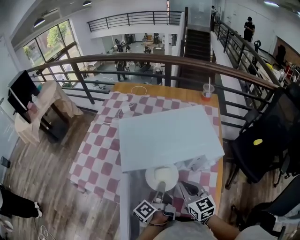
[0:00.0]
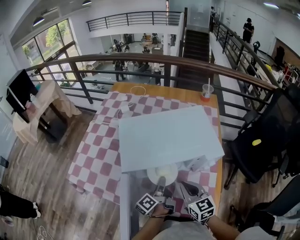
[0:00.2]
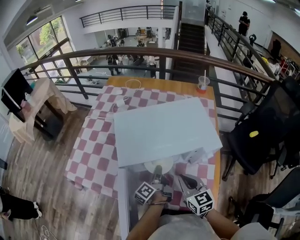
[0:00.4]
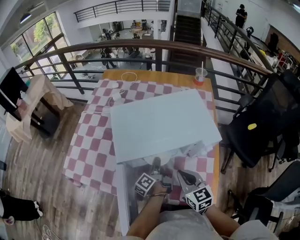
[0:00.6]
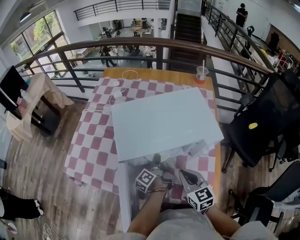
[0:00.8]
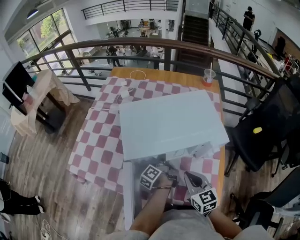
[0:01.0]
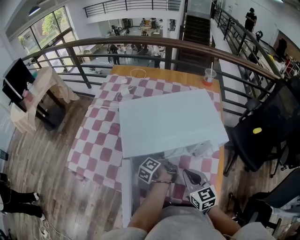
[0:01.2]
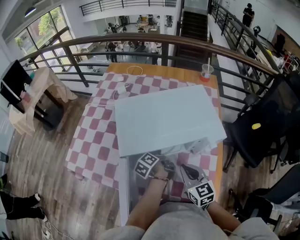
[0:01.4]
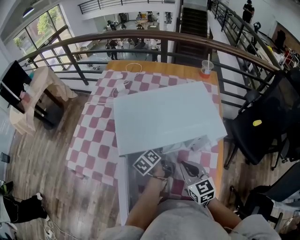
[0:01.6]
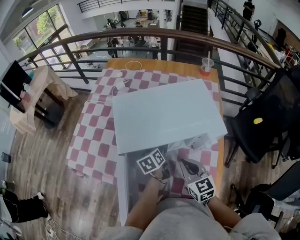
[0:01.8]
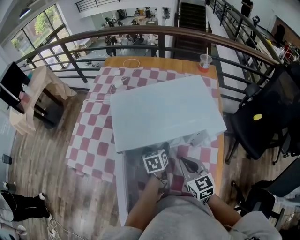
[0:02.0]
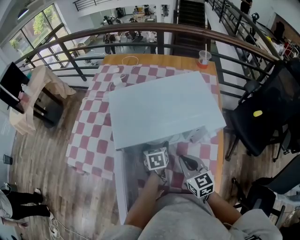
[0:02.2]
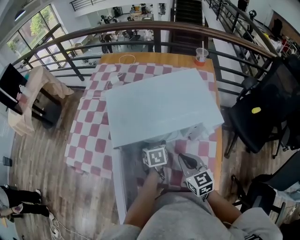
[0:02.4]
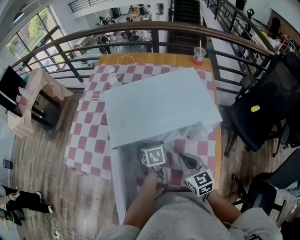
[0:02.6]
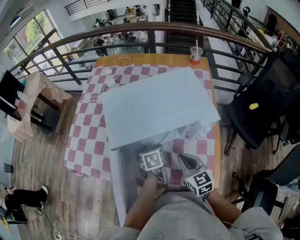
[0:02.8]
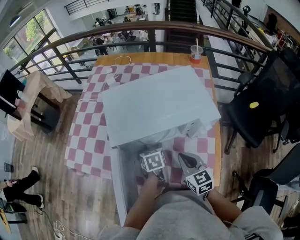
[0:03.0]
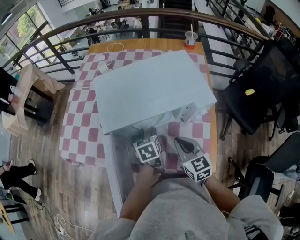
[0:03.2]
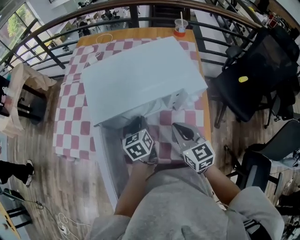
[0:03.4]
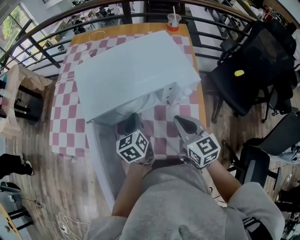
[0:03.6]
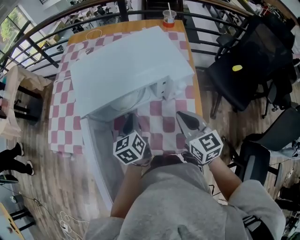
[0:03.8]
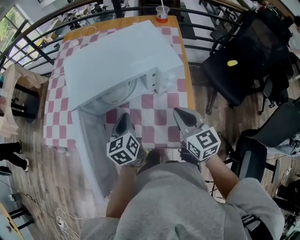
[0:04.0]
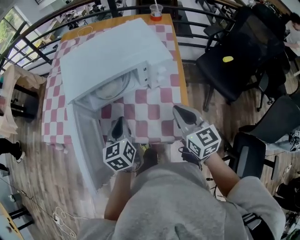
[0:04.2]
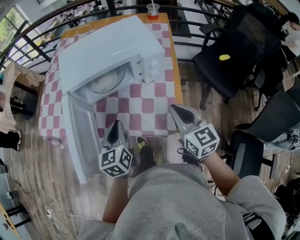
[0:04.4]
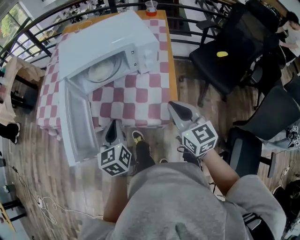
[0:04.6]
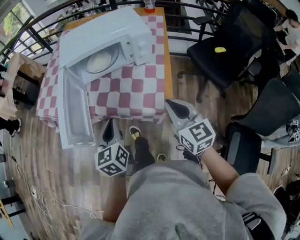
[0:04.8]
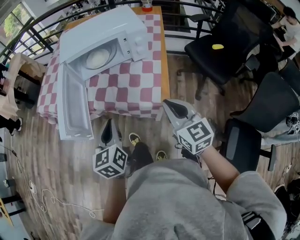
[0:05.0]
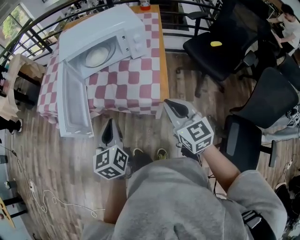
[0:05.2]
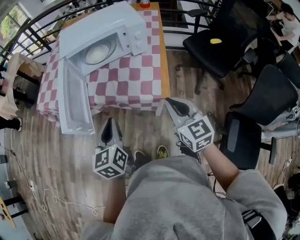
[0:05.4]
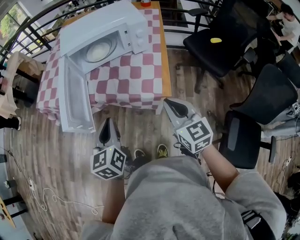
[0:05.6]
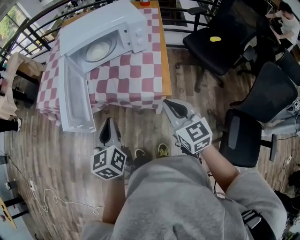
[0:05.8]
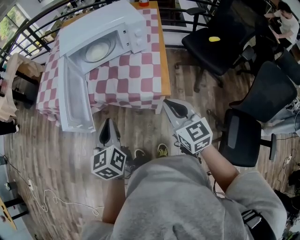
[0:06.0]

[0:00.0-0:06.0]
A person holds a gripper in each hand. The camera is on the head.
0:00.0 to 0:01.6: The left gripper shifts roughly 15 cm forward and downward, changes its angle by approximately 30 degrees, and opens.
0:01.6 to 0:03.0: The left gripper is displaced backward by roughly 5 cm, and rolls clockwise, seen from behind, by approximately 40 degrees.
0:03.0 to 0:04.4: The left gripper travels backward and upward by some 25 cm, turns by approximately 30 degrees, and closes; the right gripper heads backward, to the right and upward, covering some 20 cm.
0:04.4 to 0:06.0: Both grippers move backward, about 20 cm.

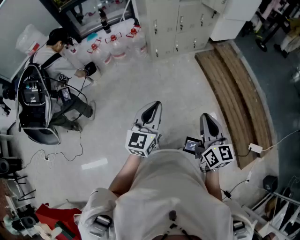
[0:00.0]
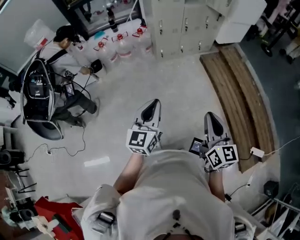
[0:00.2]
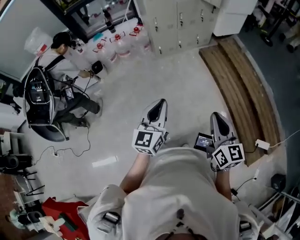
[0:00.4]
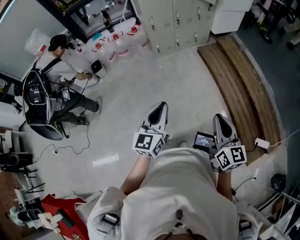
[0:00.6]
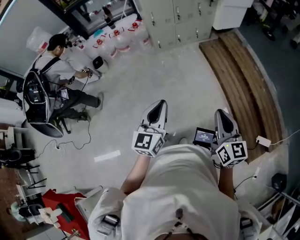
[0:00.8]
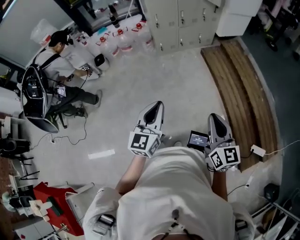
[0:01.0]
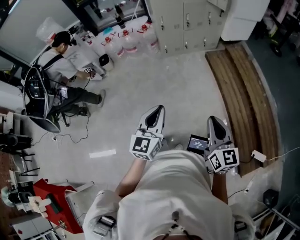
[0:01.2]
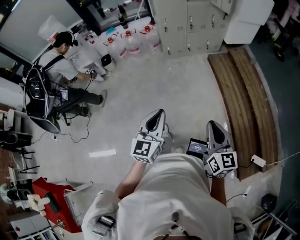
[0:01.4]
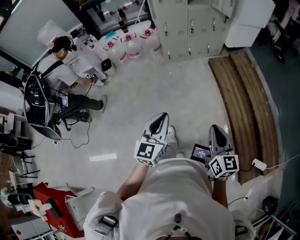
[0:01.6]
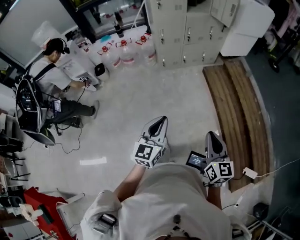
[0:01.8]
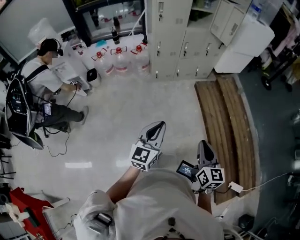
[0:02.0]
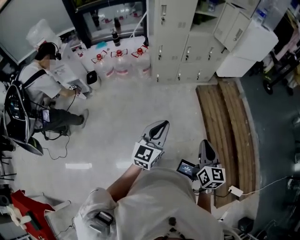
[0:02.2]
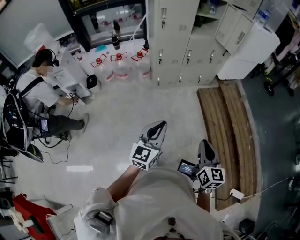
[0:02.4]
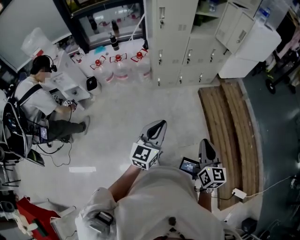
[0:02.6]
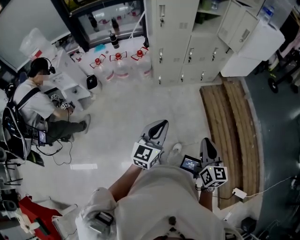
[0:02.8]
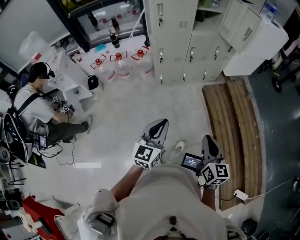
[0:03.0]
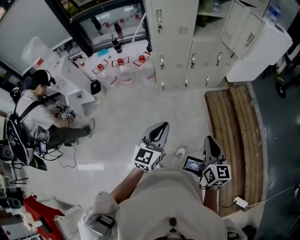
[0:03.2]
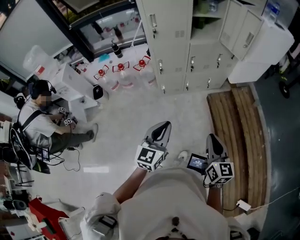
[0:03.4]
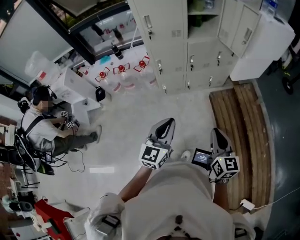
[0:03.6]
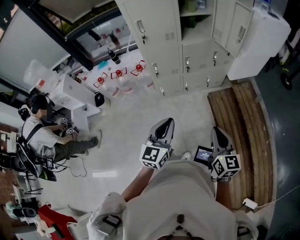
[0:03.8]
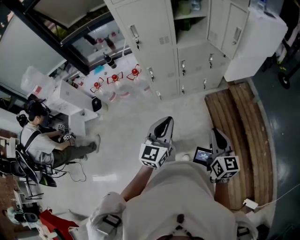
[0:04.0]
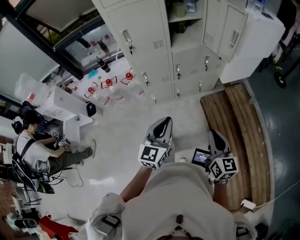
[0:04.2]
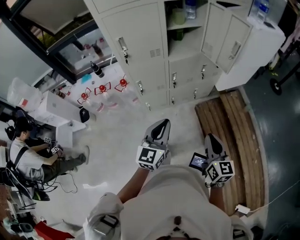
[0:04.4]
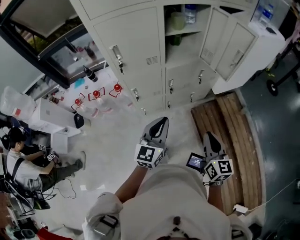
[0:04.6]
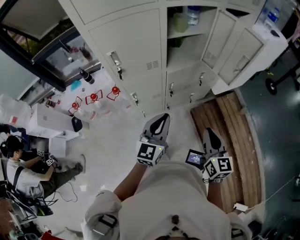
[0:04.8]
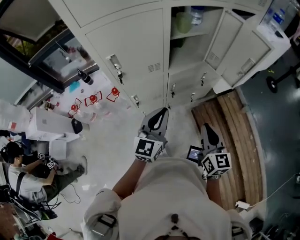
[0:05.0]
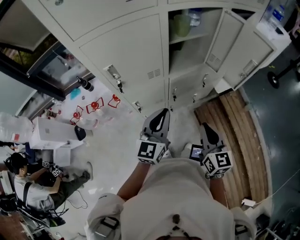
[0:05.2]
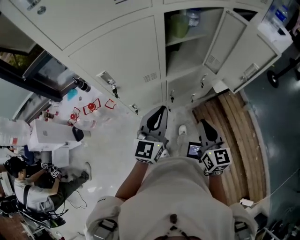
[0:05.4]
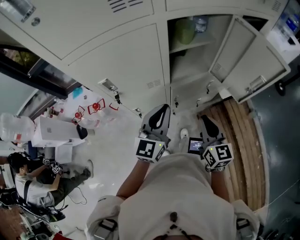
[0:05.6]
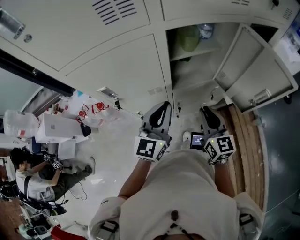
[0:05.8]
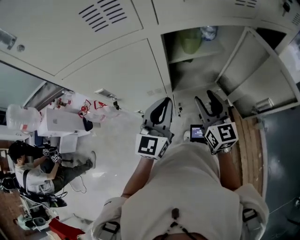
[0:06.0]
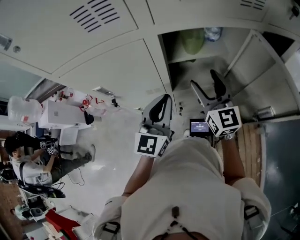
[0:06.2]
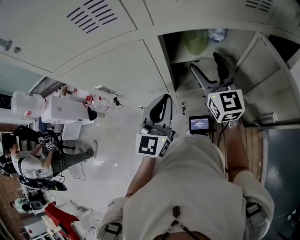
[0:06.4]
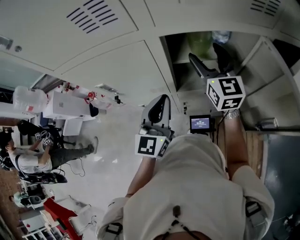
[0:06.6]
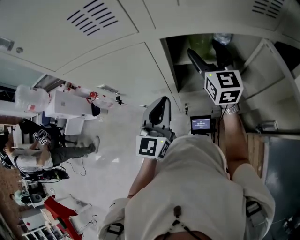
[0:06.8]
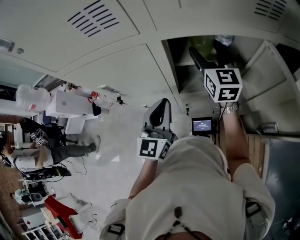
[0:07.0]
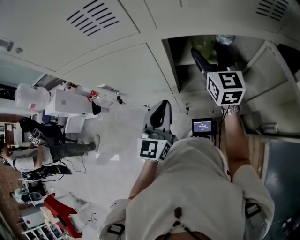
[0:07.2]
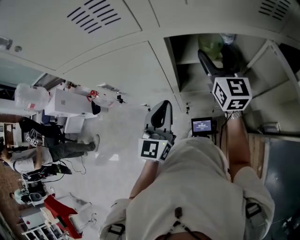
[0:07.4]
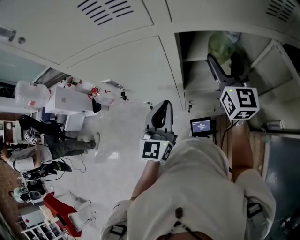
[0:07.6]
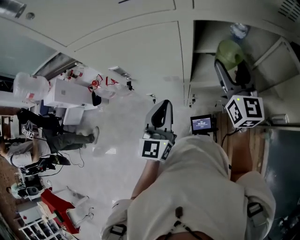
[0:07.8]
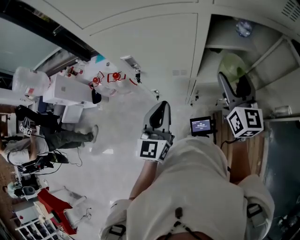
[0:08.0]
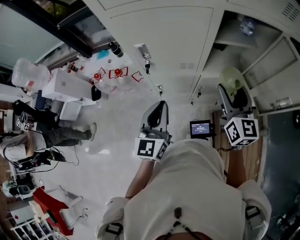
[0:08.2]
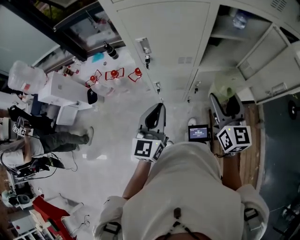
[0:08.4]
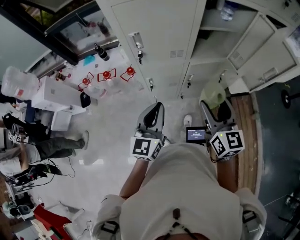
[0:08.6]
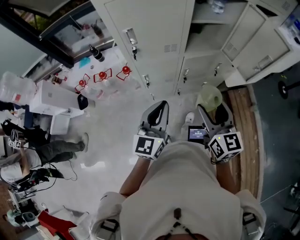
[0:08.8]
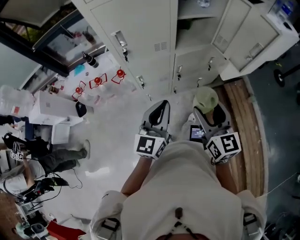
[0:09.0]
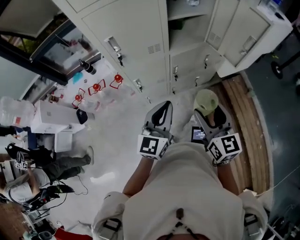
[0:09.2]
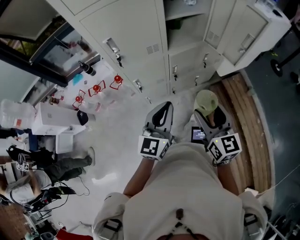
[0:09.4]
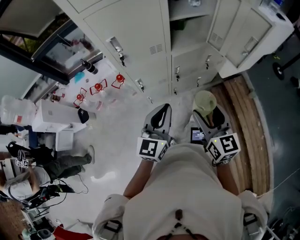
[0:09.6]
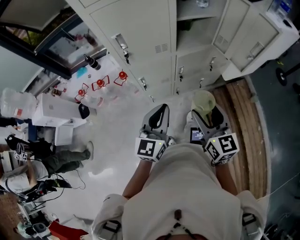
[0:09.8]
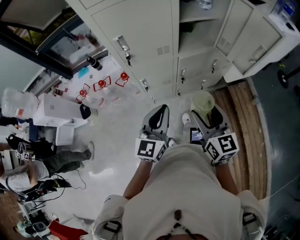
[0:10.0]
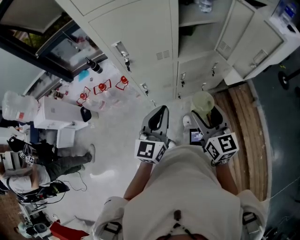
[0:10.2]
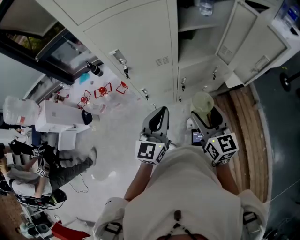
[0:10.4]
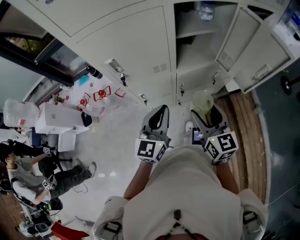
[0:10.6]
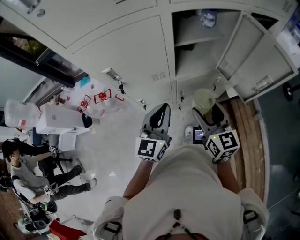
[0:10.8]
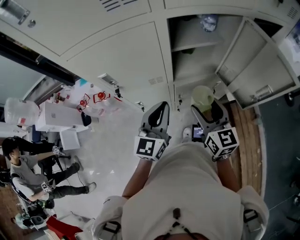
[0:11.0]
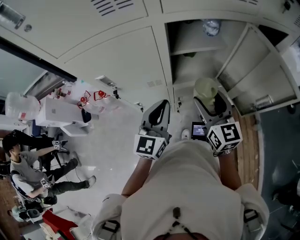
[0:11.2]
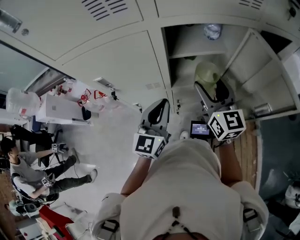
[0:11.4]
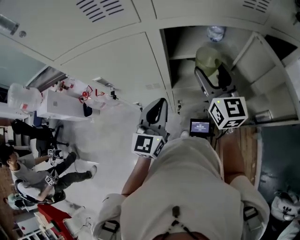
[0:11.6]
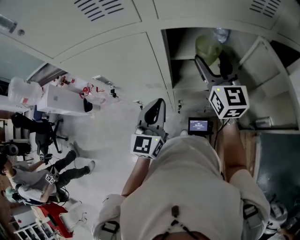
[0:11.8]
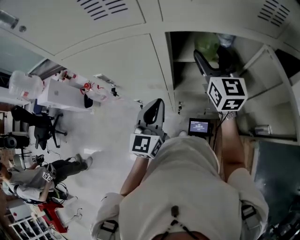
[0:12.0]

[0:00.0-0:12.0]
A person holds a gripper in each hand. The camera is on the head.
0:00.0 to 0:01.6: The left gripper moves to the right and backward, roughly 15 cm, while the right gripper travels to the right by some 15 cm.
0:01.6 to 0:03.0: Both grippers move forward, roughly 30 cm.
0:03.0 to 0:04.4: Both grippers move forward and to the right, about 30 cm.
0:04.4 to 0:06.0: Both grippers travel together forward, about 40 cm. The right gripper opens its fingers.
0:06.0 to 0:07.6: The right gripper moves forward and upward, some 15 cm, and opens.
0:07.6 to 0:09.0: The right gripper heads backward, covering about 40 cm. Meanwhile the left gripper shifts roughly 25 cm backward, and turns by about 20 degrees.
0:09.0 to 0:10.4: Both grippers travel together forward, roughly 5 cm.
0:10.4 to 0:12.0: The right gripper moves forward, about 35 cm, while the left gripper goes some 20 cm forward and to the right.

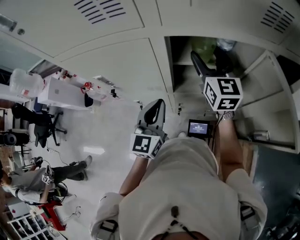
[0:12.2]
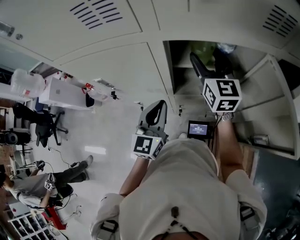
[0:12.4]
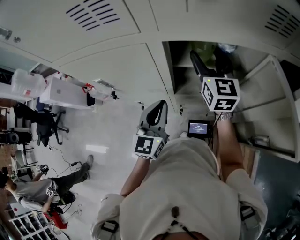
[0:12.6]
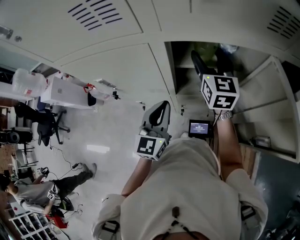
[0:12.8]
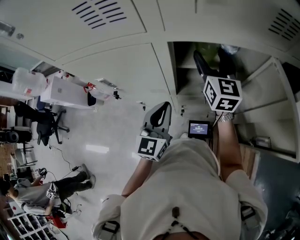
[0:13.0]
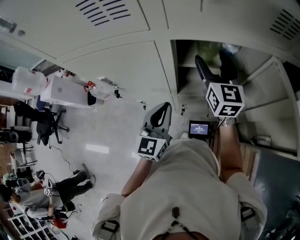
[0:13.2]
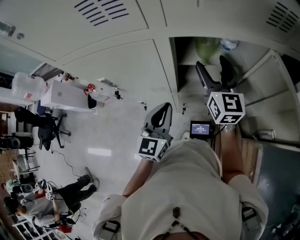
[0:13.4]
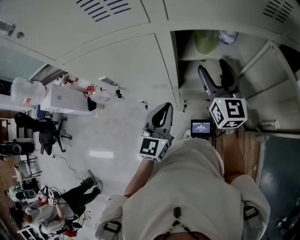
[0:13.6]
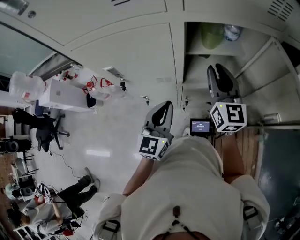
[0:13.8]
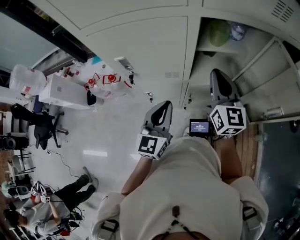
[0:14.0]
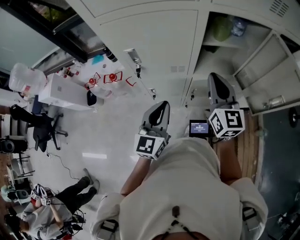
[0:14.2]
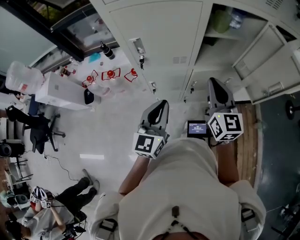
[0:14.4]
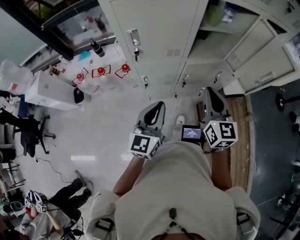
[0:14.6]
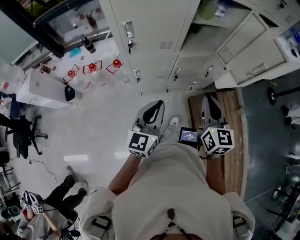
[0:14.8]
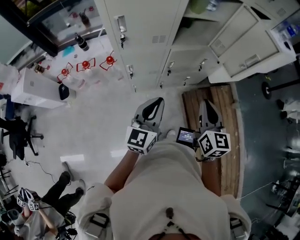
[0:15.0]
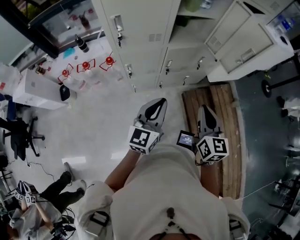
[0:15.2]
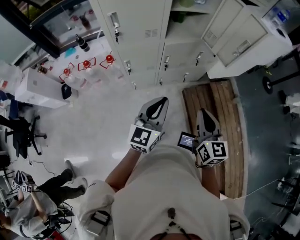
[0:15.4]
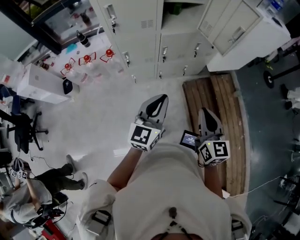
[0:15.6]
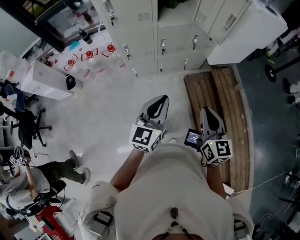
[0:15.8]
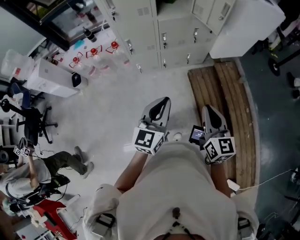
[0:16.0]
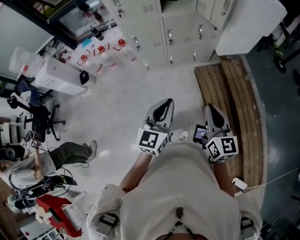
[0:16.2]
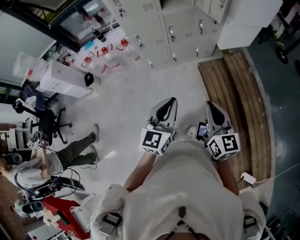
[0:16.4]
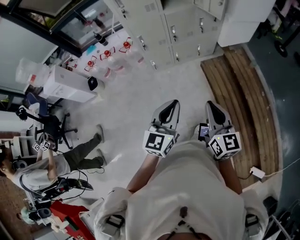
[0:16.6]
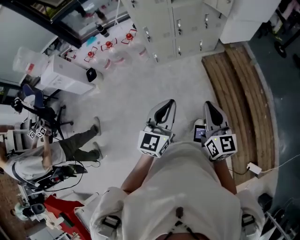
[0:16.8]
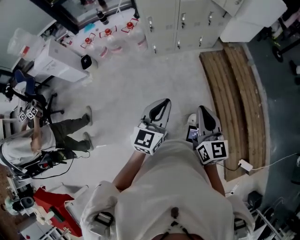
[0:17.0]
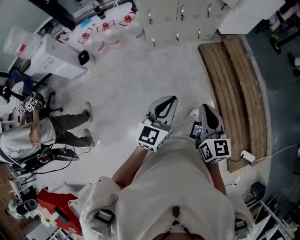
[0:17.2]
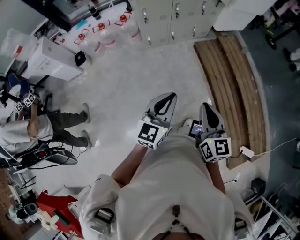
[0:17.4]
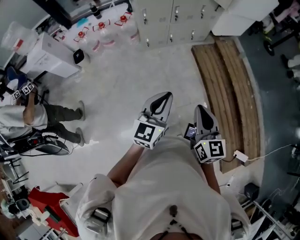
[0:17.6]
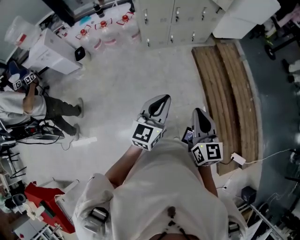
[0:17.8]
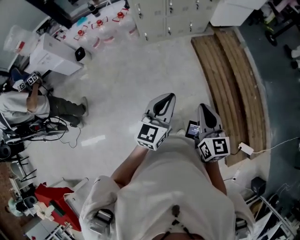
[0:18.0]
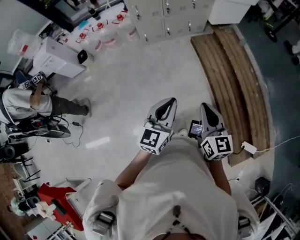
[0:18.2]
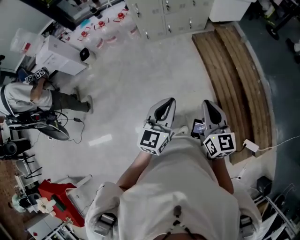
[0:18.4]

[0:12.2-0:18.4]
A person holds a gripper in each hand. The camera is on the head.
0:12.2 to 0:13.8: The right gripper travels backward by some 10 cm, and closes its fingers.
0:13.8 to 0:15.4: The left gripper travels backward by about 25 cm; the right gripper goes some 40 cm backward, and changes its angle by roughly 20 degrees.
0:15.4 to 0:16.8: The grippers both shift backward by some 35 cm.
0:16.8 to 0:18.4: Both grippers move backward and to the right, about 25 cm.
